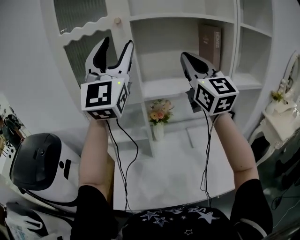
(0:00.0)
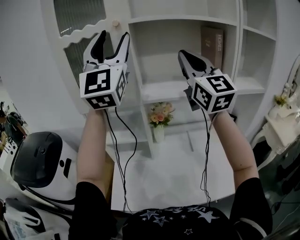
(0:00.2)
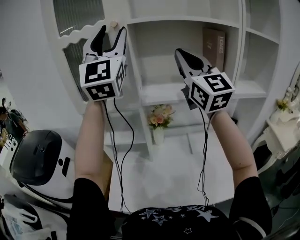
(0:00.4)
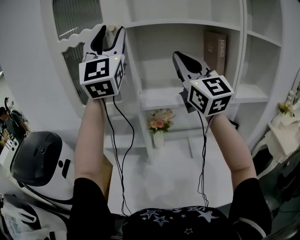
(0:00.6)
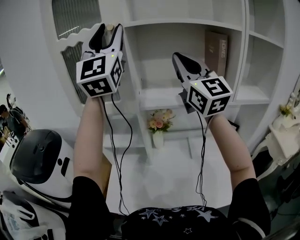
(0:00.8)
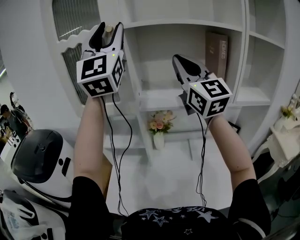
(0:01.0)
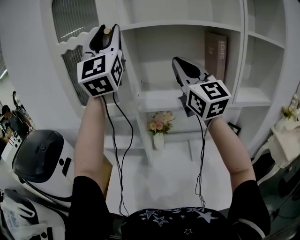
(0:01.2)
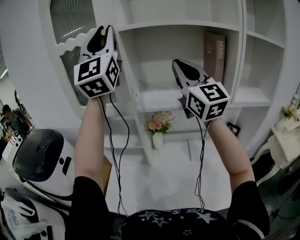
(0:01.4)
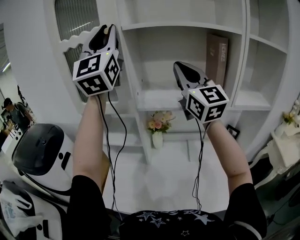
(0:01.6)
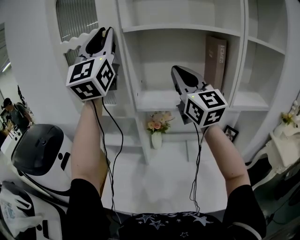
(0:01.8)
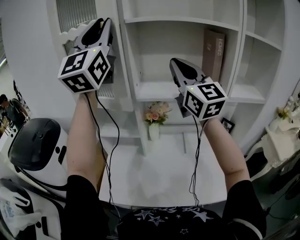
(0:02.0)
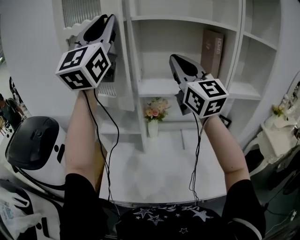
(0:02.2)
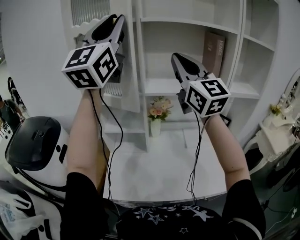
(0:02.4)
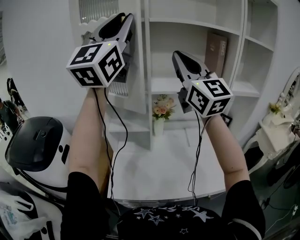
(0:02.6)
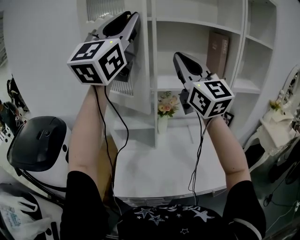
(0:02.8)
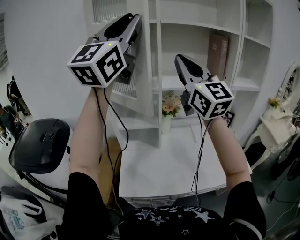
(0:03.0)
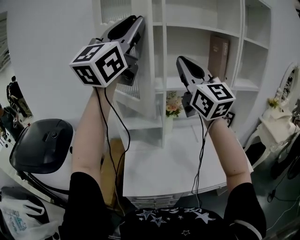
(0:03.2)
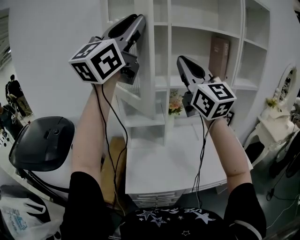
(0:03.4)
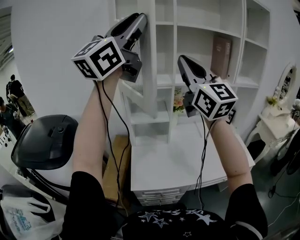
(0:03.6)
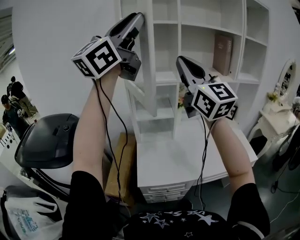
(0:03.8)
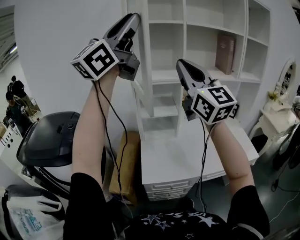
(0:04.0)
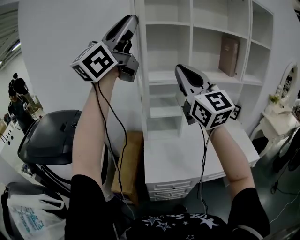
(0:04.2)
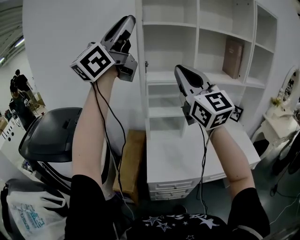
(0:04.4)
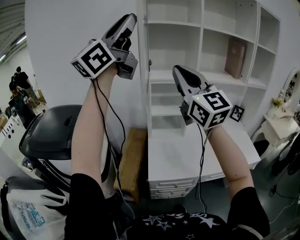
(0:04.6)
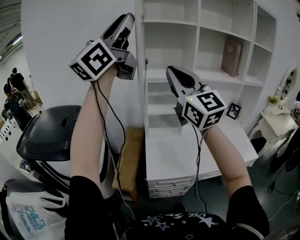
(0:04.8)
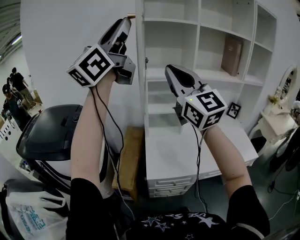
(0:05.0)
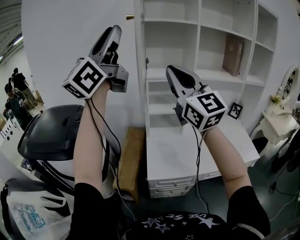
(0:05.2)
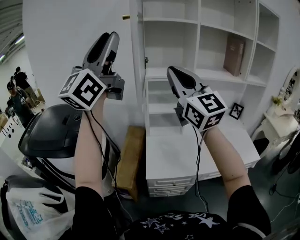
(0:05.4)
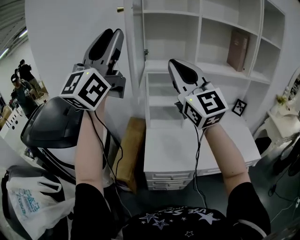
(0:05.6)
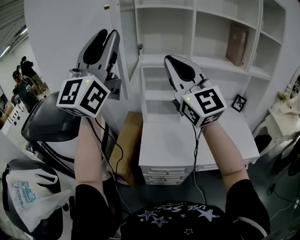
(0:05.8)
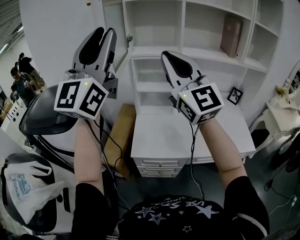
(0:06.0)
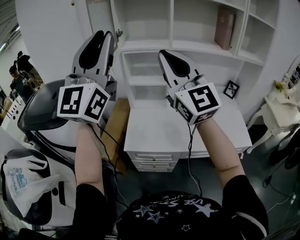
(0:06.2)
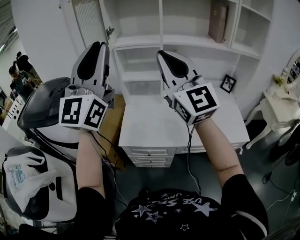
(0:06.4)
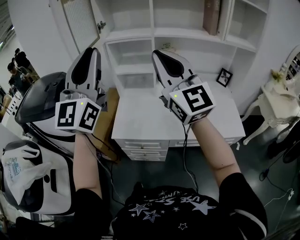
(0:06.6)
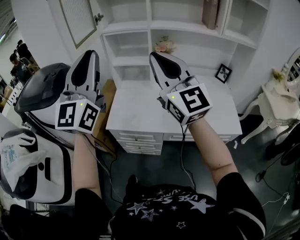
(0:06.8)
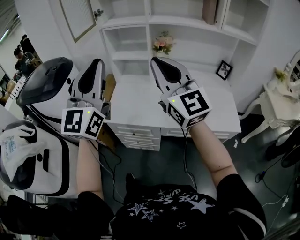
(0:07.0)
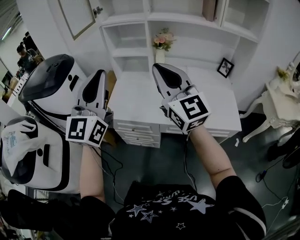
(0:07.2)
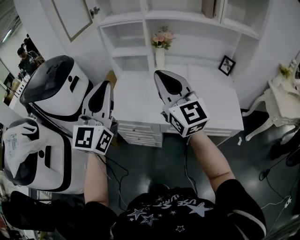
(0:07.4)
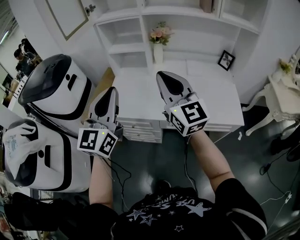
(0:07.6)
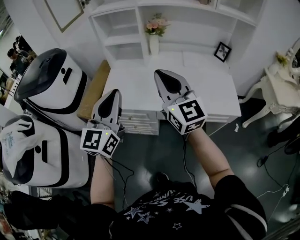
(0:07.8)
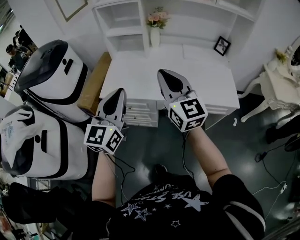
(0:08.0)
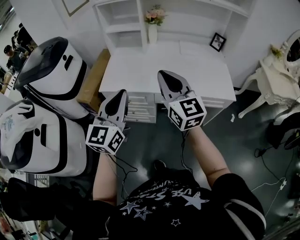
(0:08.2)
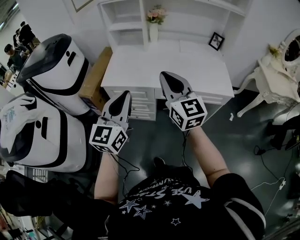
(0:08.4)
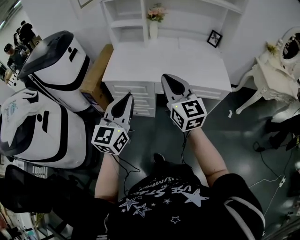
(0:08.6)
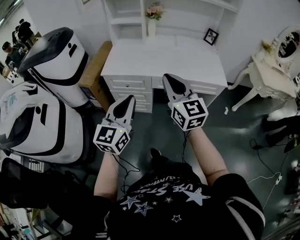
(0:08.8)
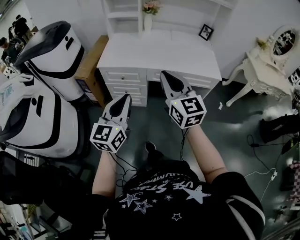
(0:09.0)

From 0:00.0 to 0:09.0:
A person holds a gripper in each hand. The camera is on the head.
From 0:00.0 to 0:01.6: The right gripper shifts approximately 5 cm forward. Meanwhile the left gripper shifts roughly 10 cm upward and forward, and closes its fingers.
From 0:01.6 to 0:03.0: Both grippers travel together backward and to the left, roughly 20 cm. The left gripper rotates approximately 30 degrees.
From 0:03.0 to 0:04.4: Both grippers travel together to the left and backward, roughly 25 cm. The left gripper turns by approximately 30 degrees.
From 0:04.4 to 0:06.0: The right gripper moves to the right, about 5 cm, while the left gripper moves downward, backward and to the right, some 15 cm, and swivels approximately 40 degrees.
From 0:06.0 to 0:07.6: The left gripper moves downward, to the right and backward, approximately 40 cm, and turns by approximately 30 degrees. The right gripper moves to the right, downward and backward, some 30 cm, and turns by roughly 20 degrees.
From 0:07.6 to 0:09.0: The left gripper moves backward and downward, about 35 cm. The right gripper moves backward, about 30 cm.

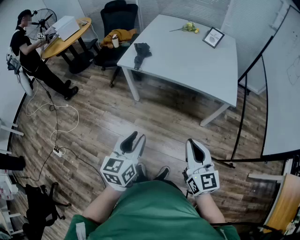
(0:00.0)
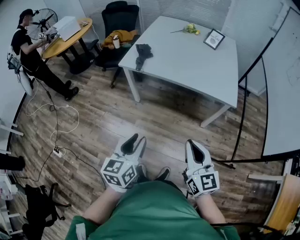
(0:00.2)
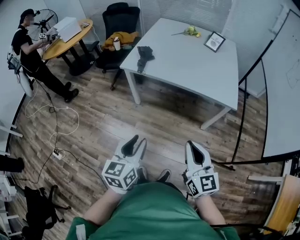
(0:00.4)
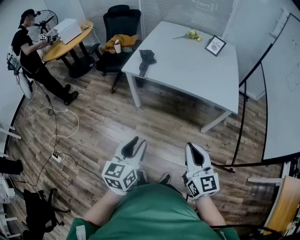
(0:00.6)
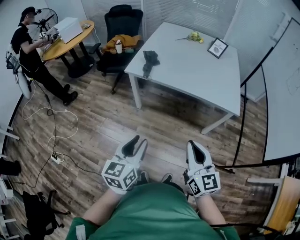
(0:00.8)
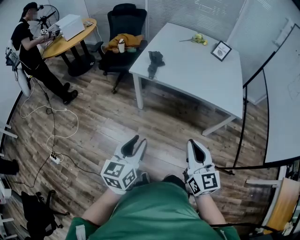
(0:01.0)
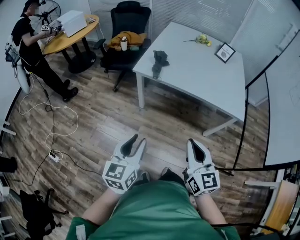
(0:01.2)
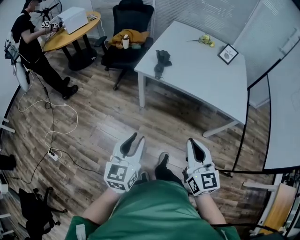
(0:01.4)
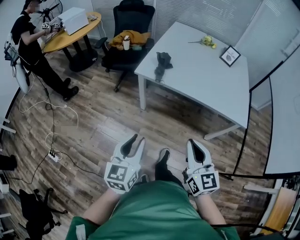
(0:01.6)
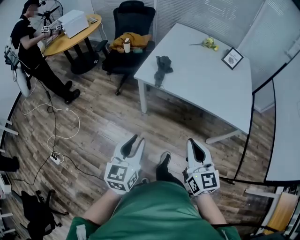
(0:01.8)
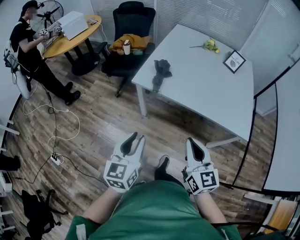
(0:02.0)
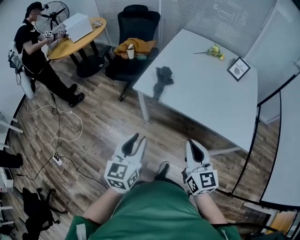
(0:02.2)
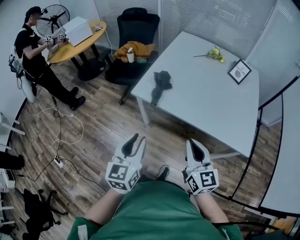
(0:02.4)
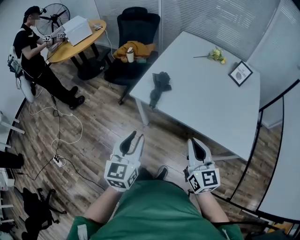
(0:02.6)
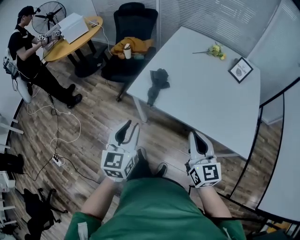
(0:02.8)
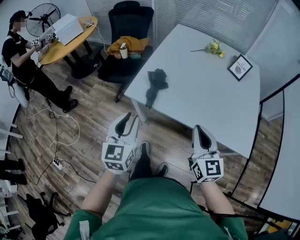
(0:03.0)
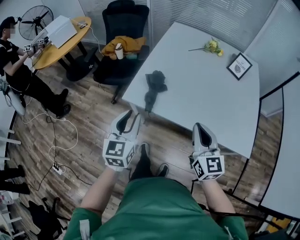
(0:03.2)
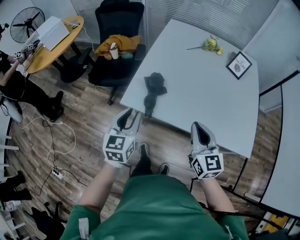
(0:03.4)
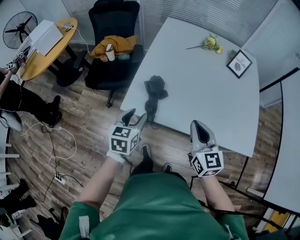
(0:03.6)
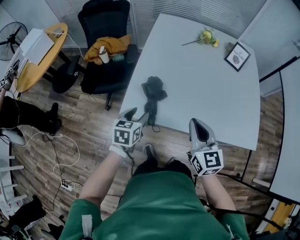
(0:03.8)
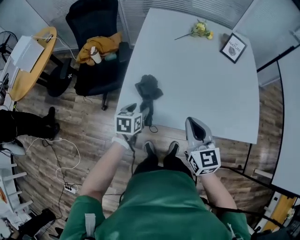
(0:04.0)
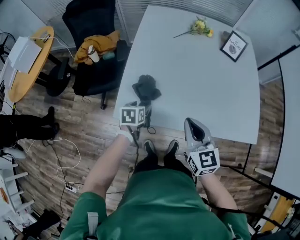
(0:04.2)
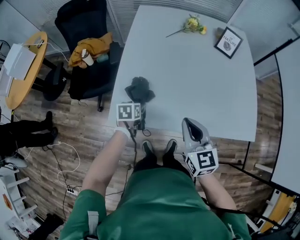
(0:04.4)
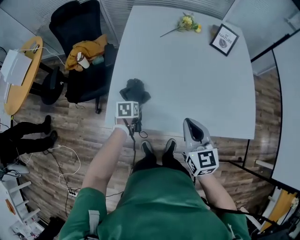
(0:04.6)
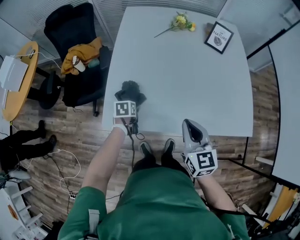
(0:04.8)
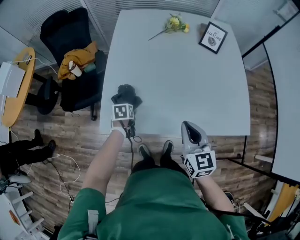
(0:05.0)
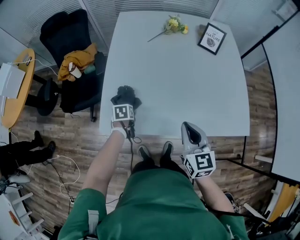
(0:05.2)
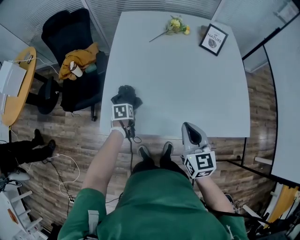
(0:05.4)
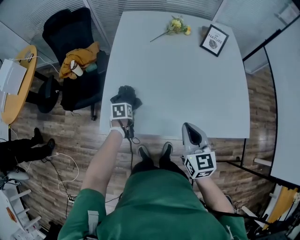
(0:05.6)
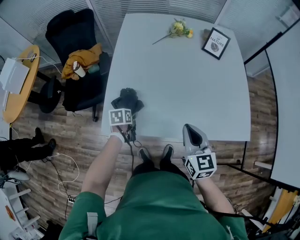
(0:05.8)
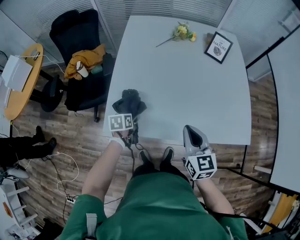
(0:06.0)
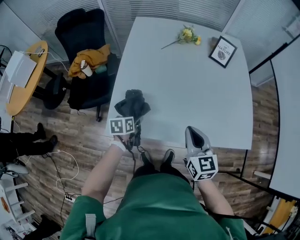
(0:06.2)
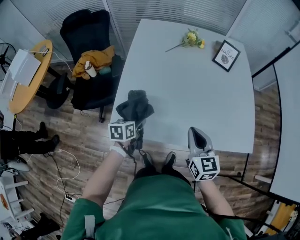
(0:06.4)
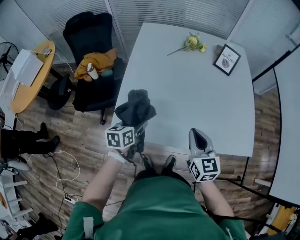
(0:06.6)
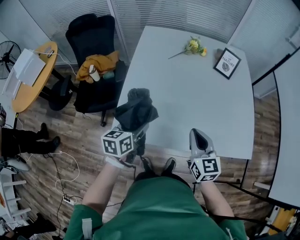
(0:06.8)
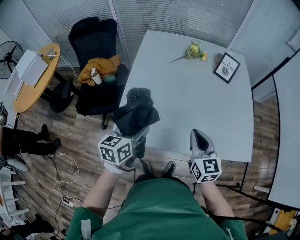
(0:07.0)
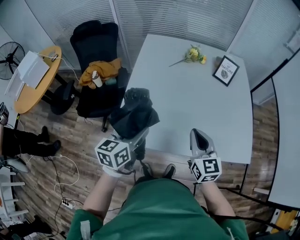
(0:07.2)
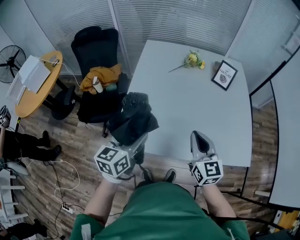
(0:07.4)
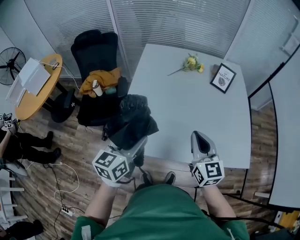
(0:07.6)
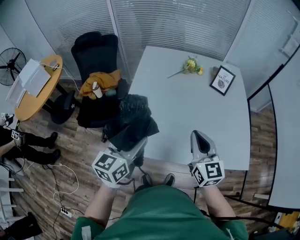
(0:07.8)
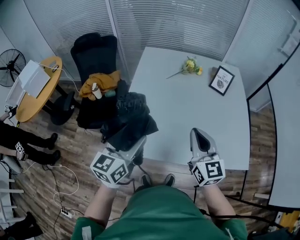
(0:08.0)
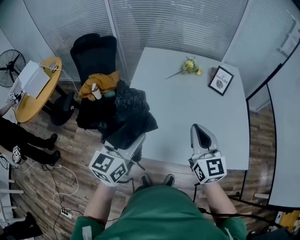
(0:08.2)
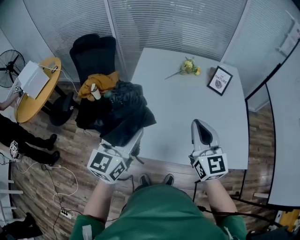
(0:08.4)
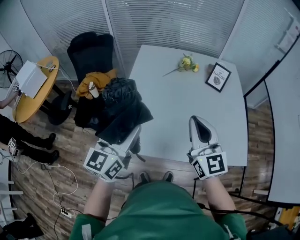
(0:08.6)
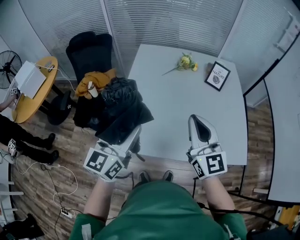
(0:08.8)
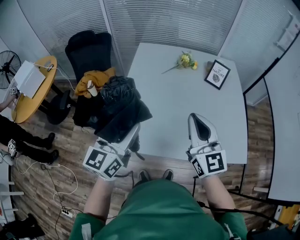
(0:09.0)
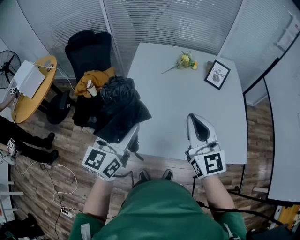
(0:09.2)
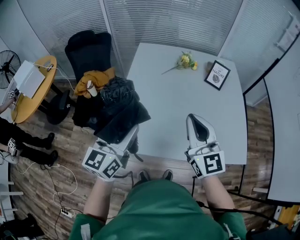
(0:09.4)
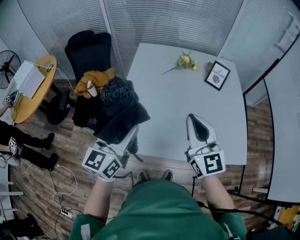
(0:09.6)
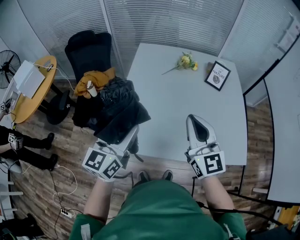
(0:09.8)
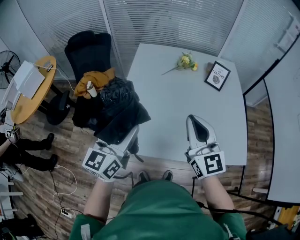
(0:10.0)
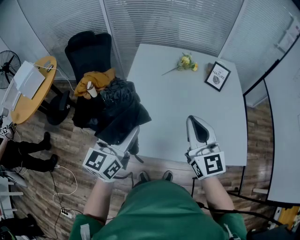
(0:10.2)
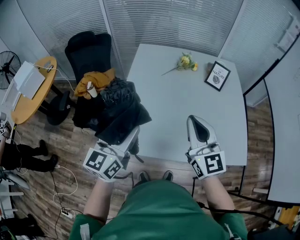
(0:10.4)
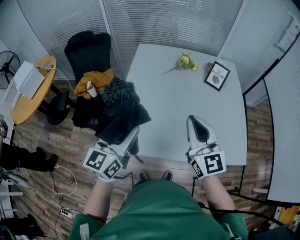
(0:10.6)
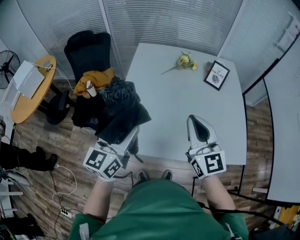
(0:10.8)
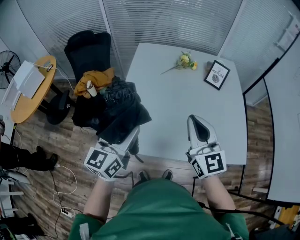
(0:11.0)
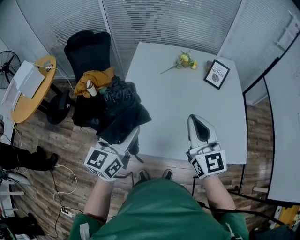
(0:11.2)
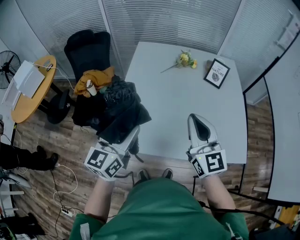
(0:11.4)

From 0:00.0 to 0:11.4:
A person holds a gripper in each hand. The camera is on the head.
From 0:00.0 to 0:01.4: The left gripper is displaced to the left by roughly 20 cm; the right gripper is displaced to the left and forward by some 20 cm.
From 0:01.4 to 0:02.8: The left gripper shifts about 30 cm forward. The right gripper shifts roughly 30 cm forward and to the right.
From 0:02.8 to 0:04.2: The left gripper travels forward and downward by about 40 cm, tips its fingers downward by about 40 degrees, and opens its fingers. Meanwhile the right gripper heads forward, covering roughly 20 cm.
From 0:04.2 to 0:05.6: The right gripper shifts about 10 cm to the right. Meanwhile the left gripper heads downward, covering roughly 5 cm.
From 0:05.6 to 0:07.2: The right gripper is displaced upward by roughly 5 cm; the left gripper goes approximately 30 cm upward, and points its fingers approximately 50 degrees further upward.
From 0:07.2 to 0:08.6: Both grippers move upward, roughly 15 cm. The left gripper swivels approximately 30 degrees.
From 0:08.6 to 0:11.4: The grippers make only small movements.

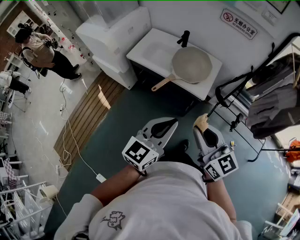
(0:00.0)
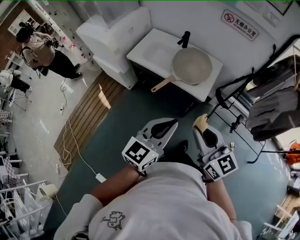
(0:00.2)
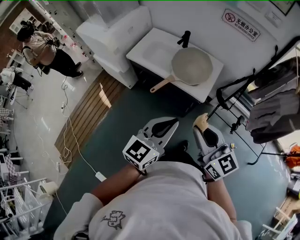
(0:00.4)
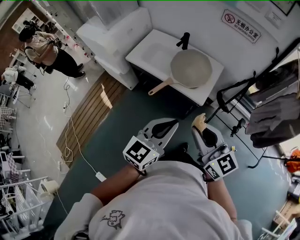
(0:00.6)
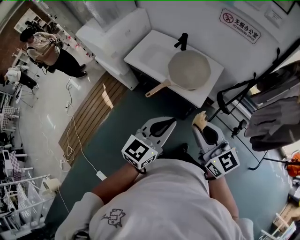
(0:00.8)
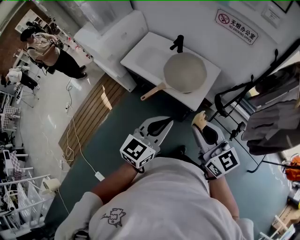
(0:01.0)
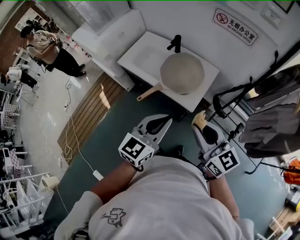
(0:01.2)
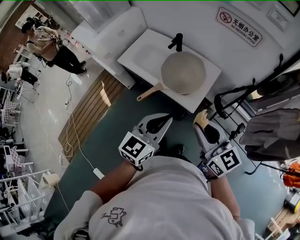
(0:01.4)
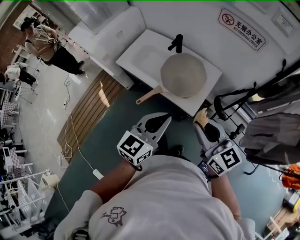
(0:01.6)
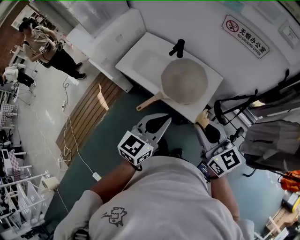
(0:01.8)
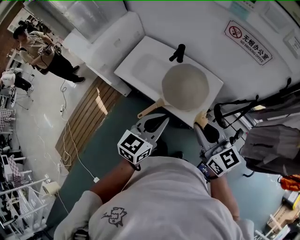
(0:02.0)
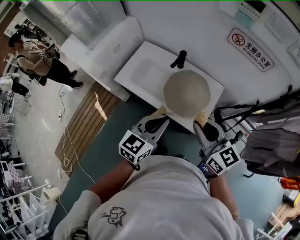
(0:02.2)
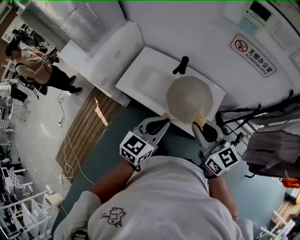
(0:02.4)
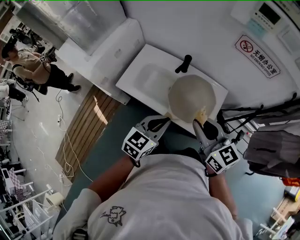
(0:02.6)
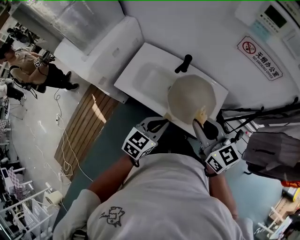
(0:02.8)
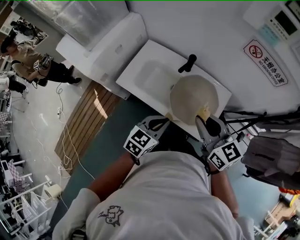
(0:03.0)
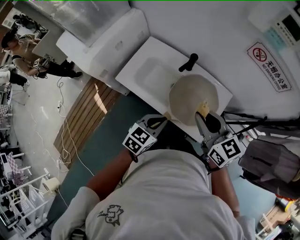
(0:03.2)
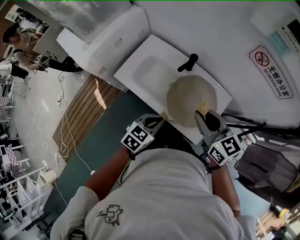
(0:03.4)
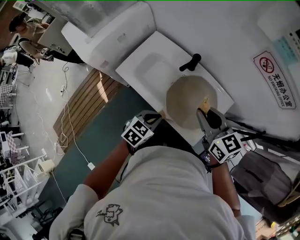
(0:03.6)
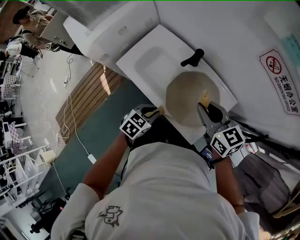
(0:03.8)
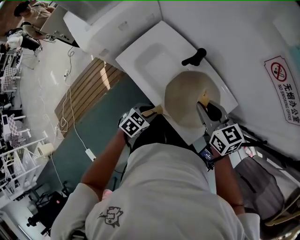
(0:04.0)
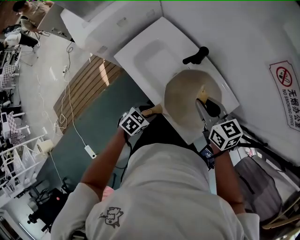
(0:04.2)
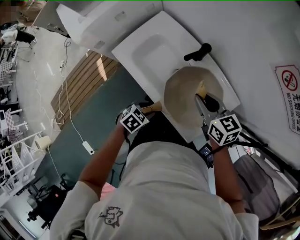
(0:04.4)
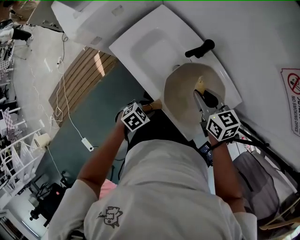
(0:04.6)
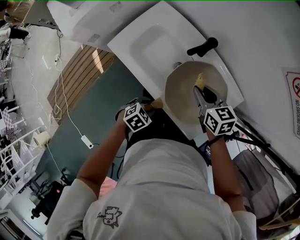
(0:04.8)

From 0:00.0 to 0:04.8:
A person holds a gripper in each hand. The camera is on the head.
From 0:00.0 to 0:01.6: The two grippers go approximately 20 cm forward and to the right.
From 0:01.6 to 0:03.2: The left gripper is displaced forward, downward and to the left by some 25 cm, and changes its angle by some 30 degrees; the right gripper travels forward and to the left by approximately 25 cm.
From 0:03.2 to 0:04.8: The left gripper goes roughly 25 cm downward, points its fingers about 30 degrees further downward, and opens its fingers, while the right gripper moves downward and forward, some 25 cm, and changes its angle by some 20 degrees.